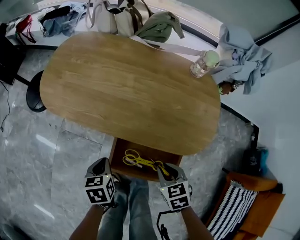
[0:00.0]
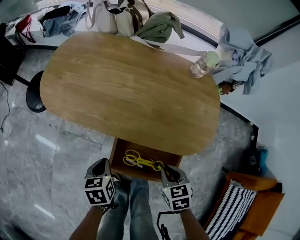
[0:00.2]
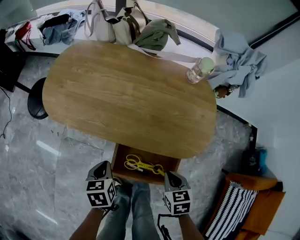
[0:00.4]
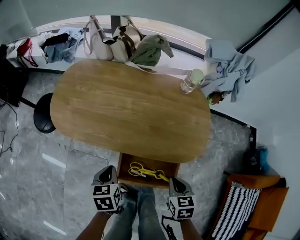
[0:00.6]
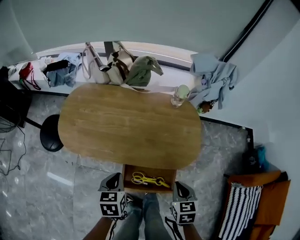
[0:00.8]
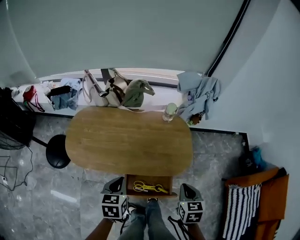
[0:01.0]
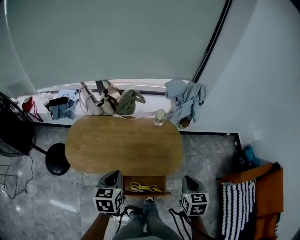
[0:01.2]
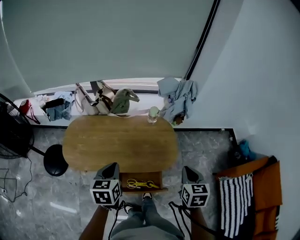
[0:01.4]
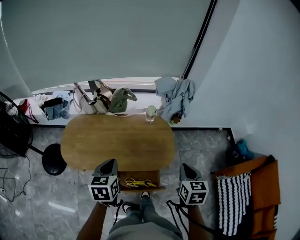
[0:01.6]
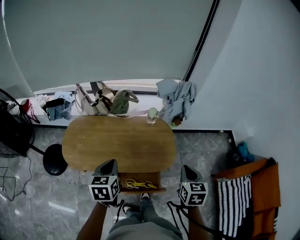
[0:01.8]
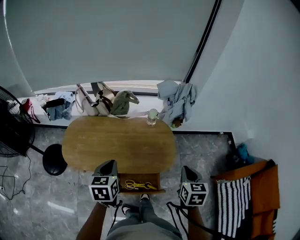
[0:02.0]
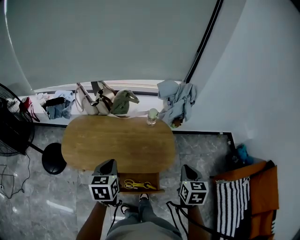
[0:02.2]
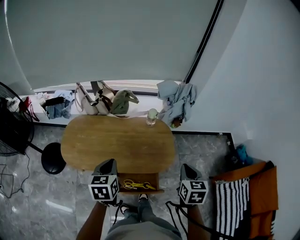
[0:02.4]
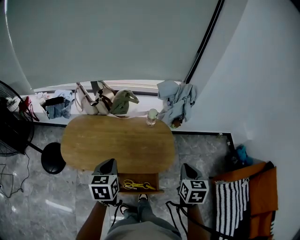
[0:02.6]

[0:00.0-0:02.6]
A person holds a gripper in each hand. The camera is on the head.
0.0 to 1.2 s: Both grippers travel together upward, roughly 35 cm. The left gripper turns by some 30 degrees. The right gripper rotates some 40 degrees, and closes its fingers.
1.2 to 2.6 s: The right gripper moves upward, some 5 cm.

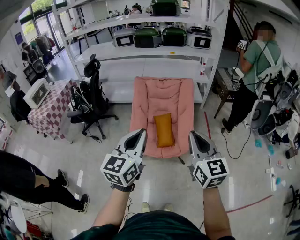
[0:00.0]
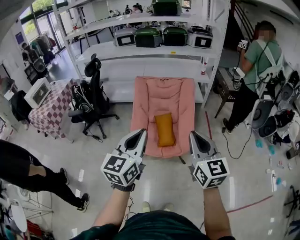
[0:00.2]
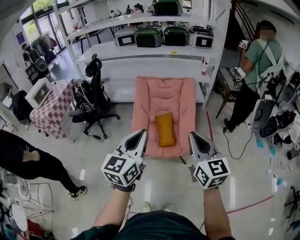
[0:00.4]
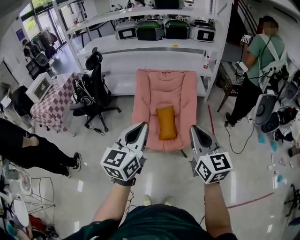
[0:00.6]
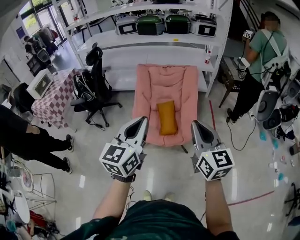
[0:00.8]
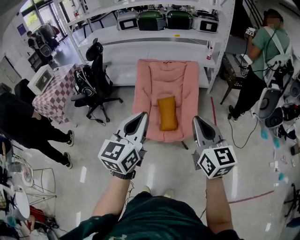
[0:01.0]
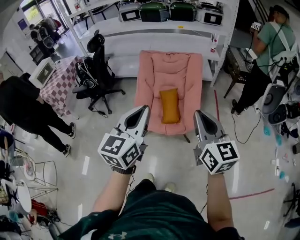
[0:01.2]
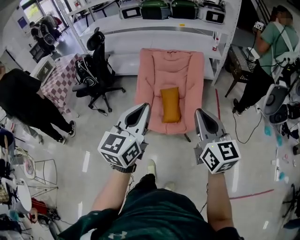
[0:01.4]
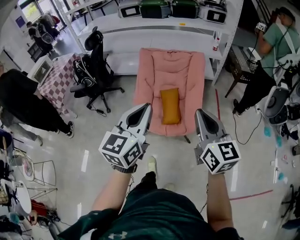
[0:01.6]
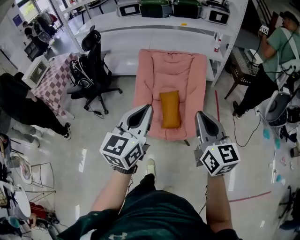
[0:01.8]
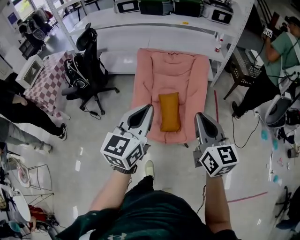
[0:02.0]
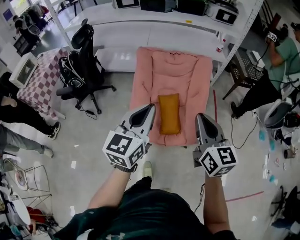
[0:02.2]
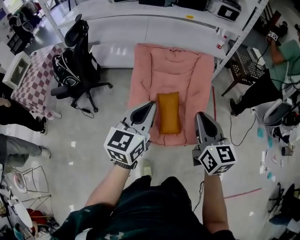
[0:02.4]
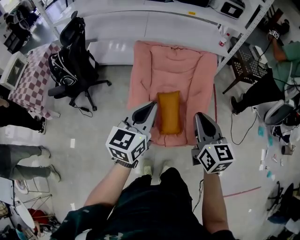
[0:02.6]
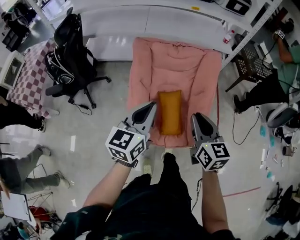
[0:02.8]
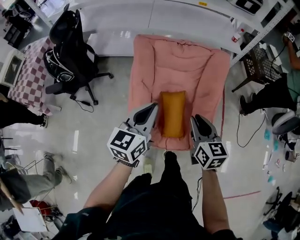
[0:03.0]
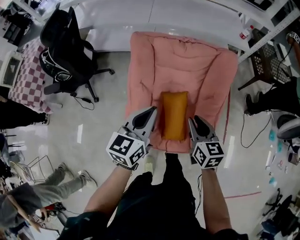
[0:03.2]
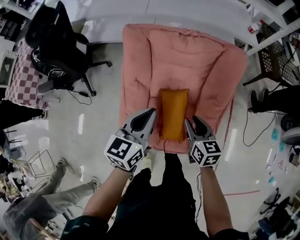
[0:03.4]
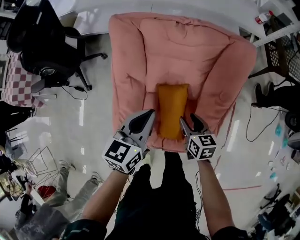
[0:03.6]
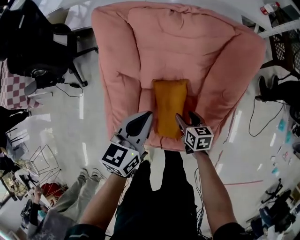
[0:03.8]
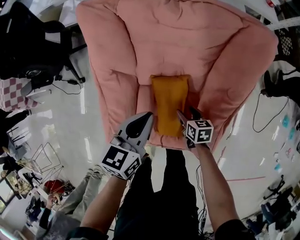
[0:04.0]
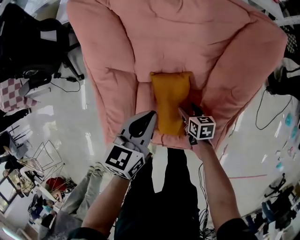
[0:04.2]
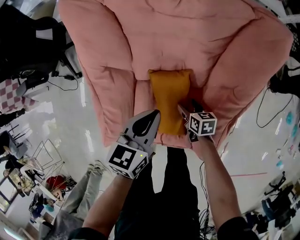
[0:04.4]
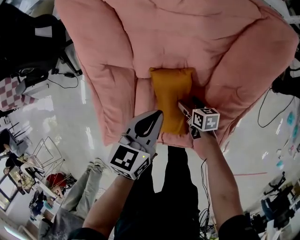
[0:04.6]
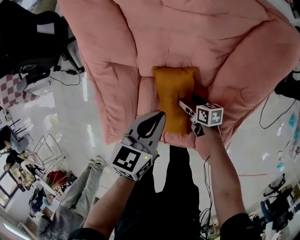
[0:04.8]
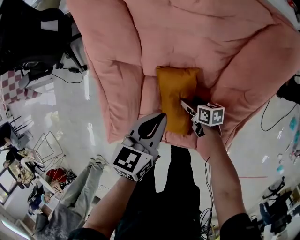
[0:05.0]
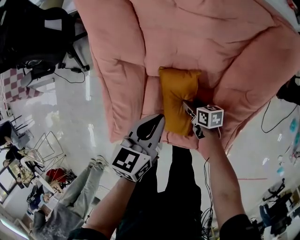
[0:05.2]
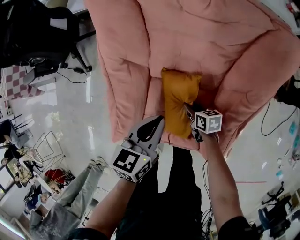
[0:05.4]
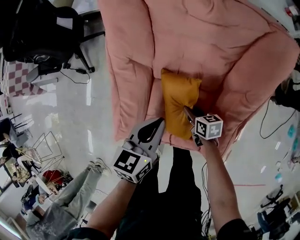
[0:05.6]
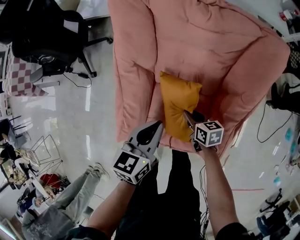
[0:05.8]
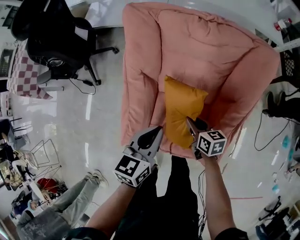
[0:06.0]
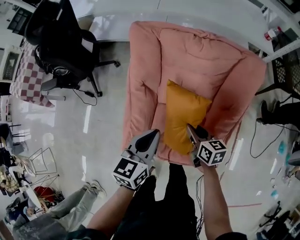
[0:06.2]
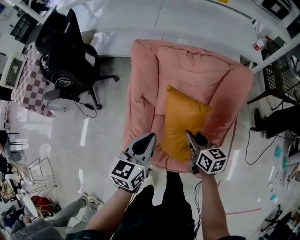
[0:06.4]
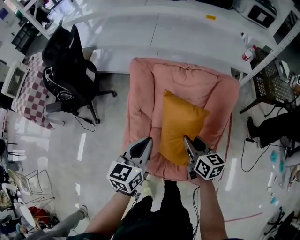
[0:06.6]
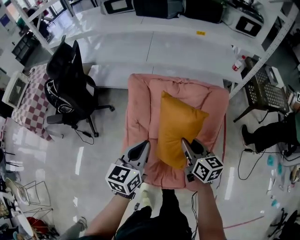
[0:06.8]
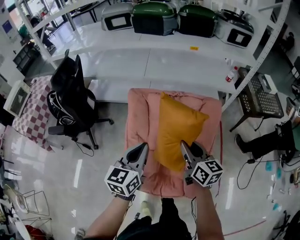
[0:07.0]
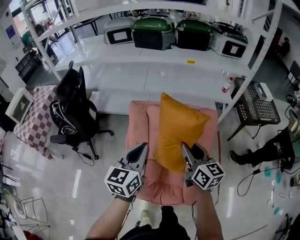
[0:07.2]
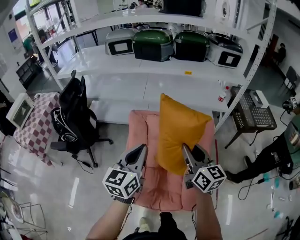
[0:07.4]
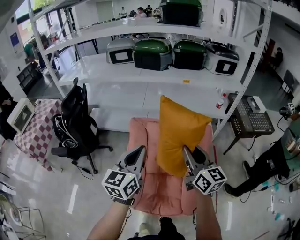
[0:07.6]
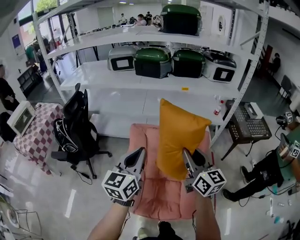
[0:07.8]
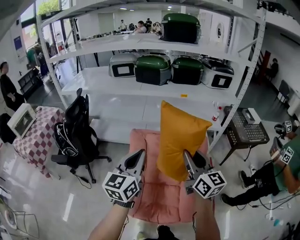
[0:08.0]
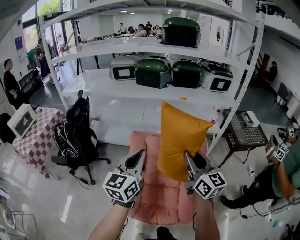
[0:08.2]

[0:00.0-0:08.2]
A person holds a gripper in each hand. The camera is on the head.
0.0 to 1.6 s: The left gripper moves roughly 5 cm. The right gripper travels forward by approximately 5 cm.
1.6 to 3.2 s: The two grippers travel together, forward, about 40 cm. Both grippers travel together downward, roughly 25 cm. The right gripper changes its angle by about 30 degrees.
3.2 to 5.0 s: The left gripper travels downward by roughly 30 cm, and turns by about 30 degrees, while the right gripper is displaced downward by some 50 cm, turns by some 50 degrees, and opens up.
5.0 to 6.6 s: The right gripper goes roughly 40 cm upward, turns by approximately 40 degrees, and closes. The left gripper shifts some 25 cm upward, and rotates roughly 20 degrees.
6.6 to 8.2 s: Both grippers travel together upward, approximately 30 cm. The right gripper tilts its fingers some 30 degrees upward. Meanwhile the left gripper rotates some 30 degrees.

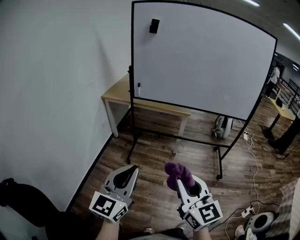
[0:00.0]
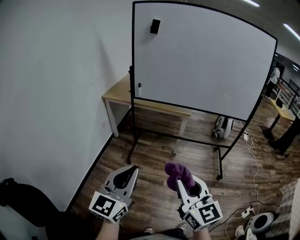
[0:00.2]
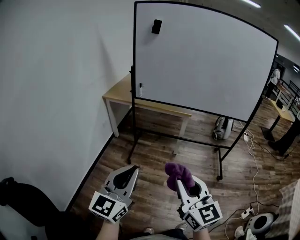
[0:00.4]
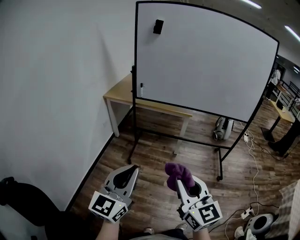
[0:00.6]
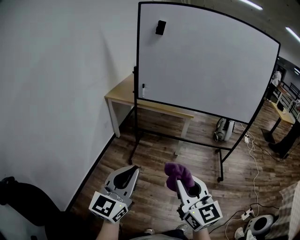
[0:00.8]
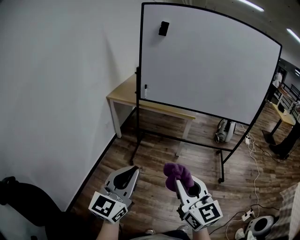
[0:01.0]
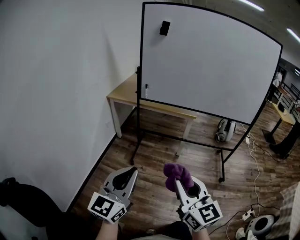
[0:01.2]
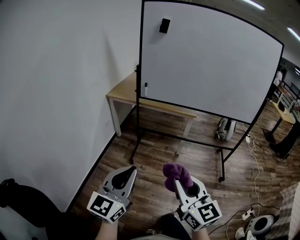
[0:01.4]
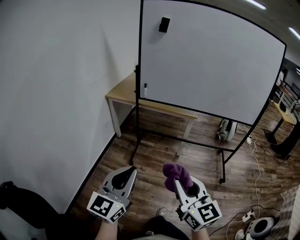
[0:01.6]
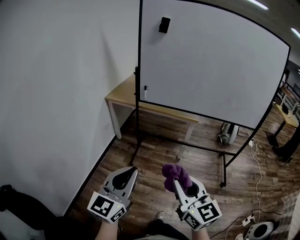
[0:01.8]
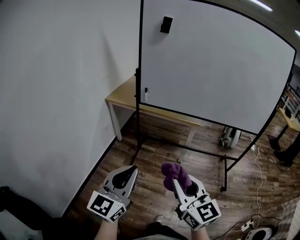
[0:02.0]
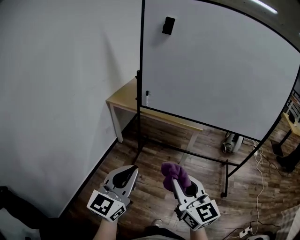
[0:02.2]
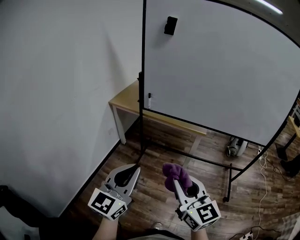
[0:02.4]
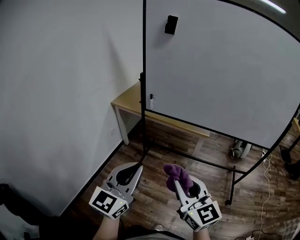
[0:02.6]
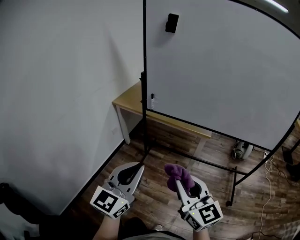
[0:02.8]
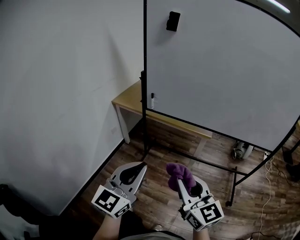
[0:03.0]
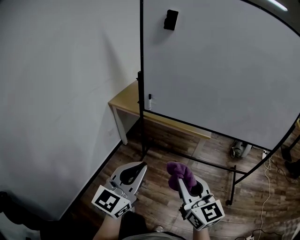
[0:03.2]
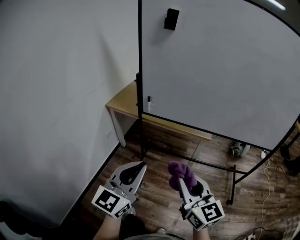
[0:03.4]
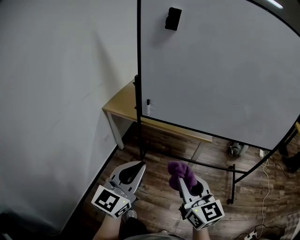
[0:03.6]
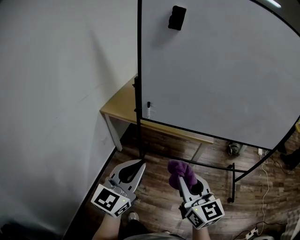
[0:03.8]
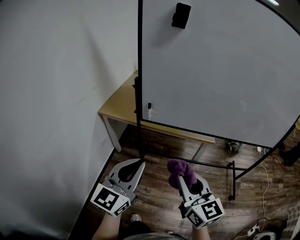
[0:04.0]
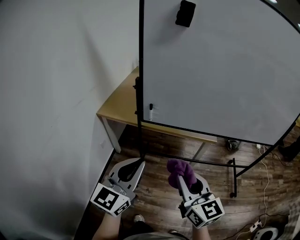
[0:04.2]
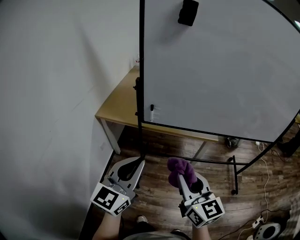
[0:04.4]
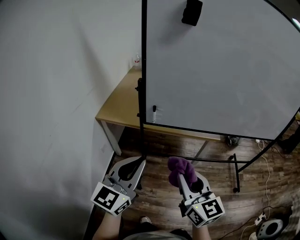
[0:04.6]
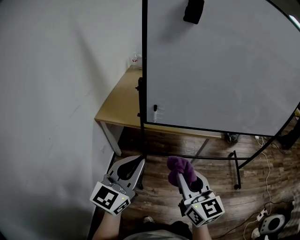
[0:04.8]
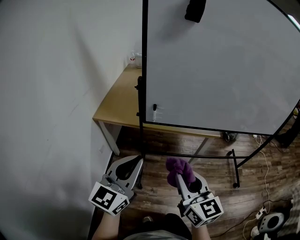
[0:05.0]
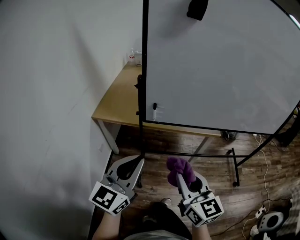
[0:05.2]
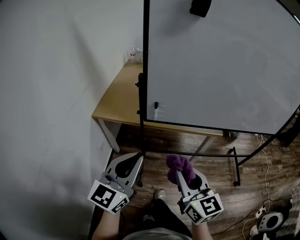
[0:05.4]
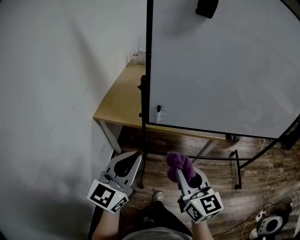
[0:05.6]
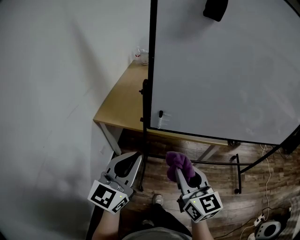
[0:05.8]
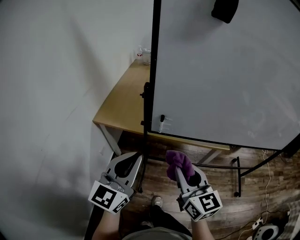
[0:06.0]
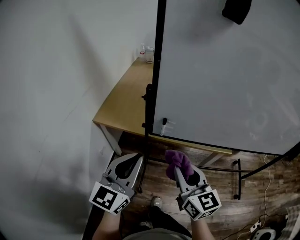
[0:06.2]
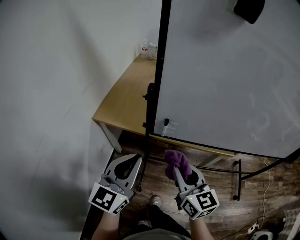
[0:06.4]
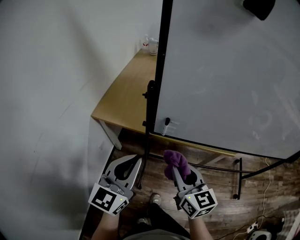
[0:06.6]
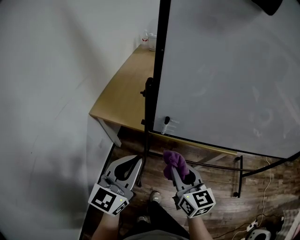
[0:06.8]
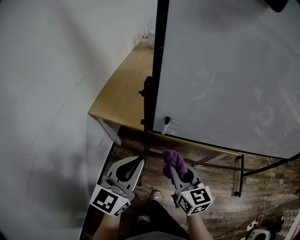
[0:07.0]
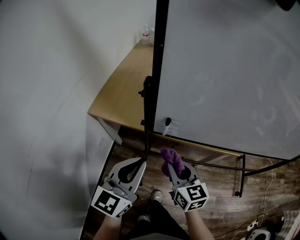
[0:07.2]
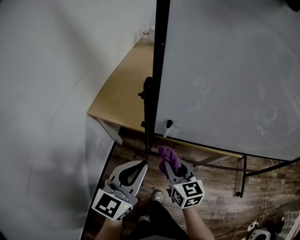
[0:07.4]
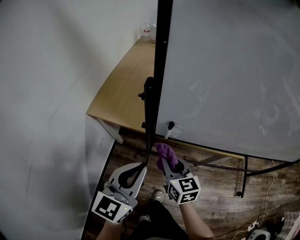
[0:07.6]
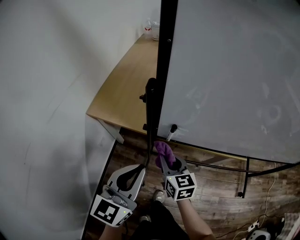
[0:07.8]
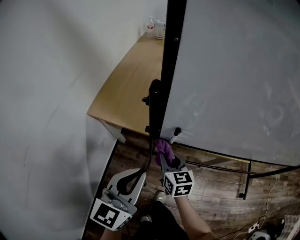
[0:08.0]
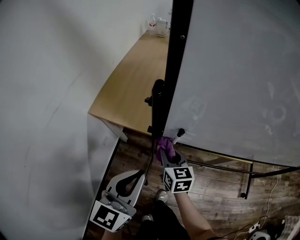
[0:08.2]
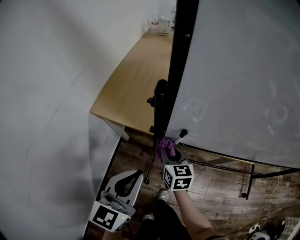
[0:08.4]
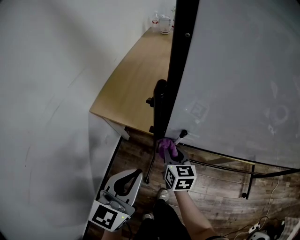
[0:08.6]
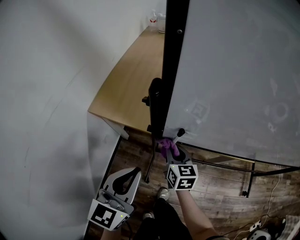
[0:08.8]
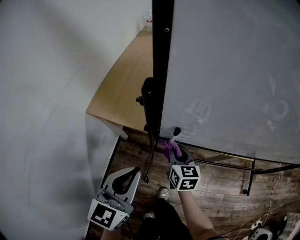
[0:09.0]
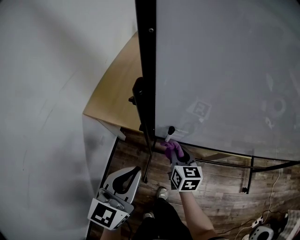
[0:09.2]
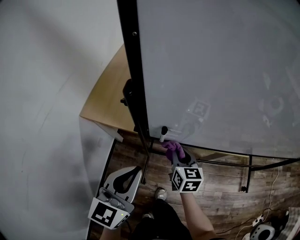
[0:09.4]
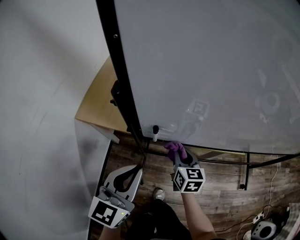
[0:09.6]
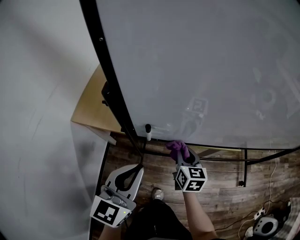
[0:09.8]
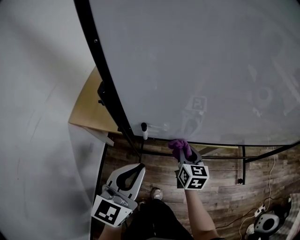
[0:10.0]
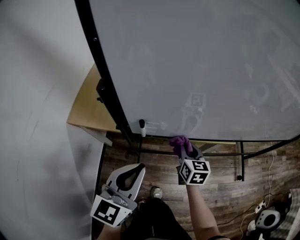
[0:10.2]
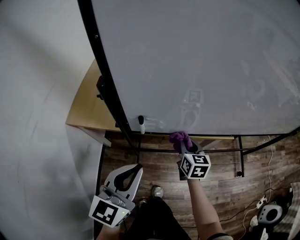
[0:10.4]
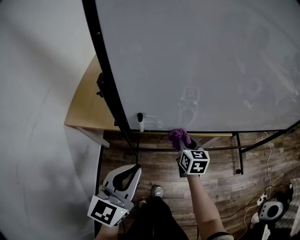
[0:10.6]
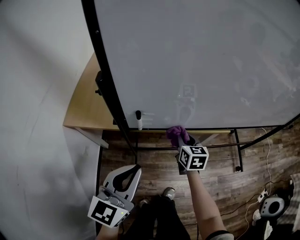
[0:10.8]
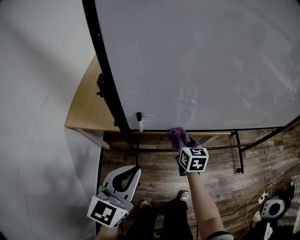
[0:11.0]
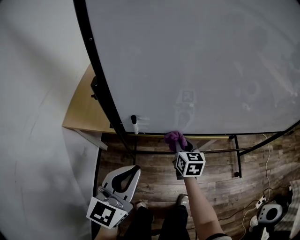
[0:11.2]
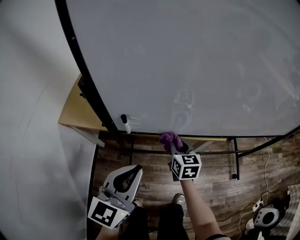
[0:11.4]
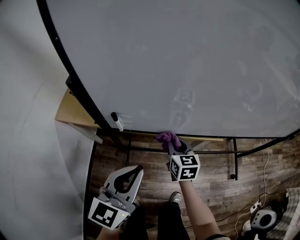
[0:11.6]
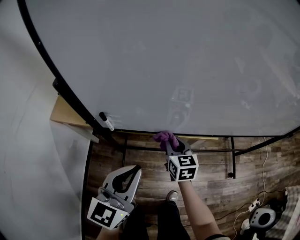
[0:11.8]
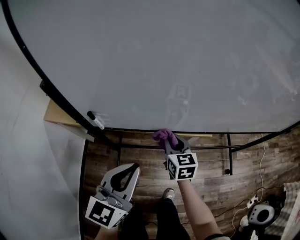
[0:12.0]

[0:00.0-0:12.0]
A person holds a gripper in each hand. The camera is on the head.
0.0 to 1.6 s: The right gripper moves roughly 5 cm. Meanwhile the left gripper changes place by about 5 cm.
1.6 to 3.0 s: The right gripper heads forward, covering approximately 20 cm; the left gripper travels forward and to the right by some 20 cm.
3.0 to 4.4 s: Both grippers move forward and to the left, about 25 cm.
4.4 to 6.0 s: Both grippers travel together forward and to the left, about 15 cm.
6.0 to 7.6 s: The right gripper travels downward and forward by some 25 cm. The left gripper travels downward and forward by roughly 15 cm.
7.6 to 9.0 s: The right gripper goes roughly 10 cm forward and downward.
9.0 to 10.4 s: The right gripper is displaced to the right by approximately 15 cm. Meanwhile the left gripper heads to the right, covering roughly 10 cm.
10.4 to 12.0 s: The left gripper heads to the right, covering about 15 cm; the right gripper heads to the right, covering roughly 10 cm.

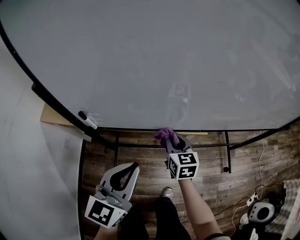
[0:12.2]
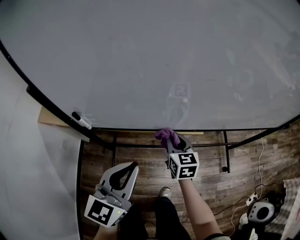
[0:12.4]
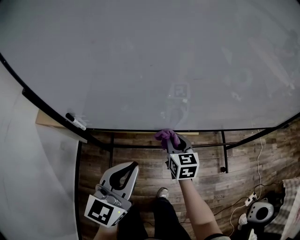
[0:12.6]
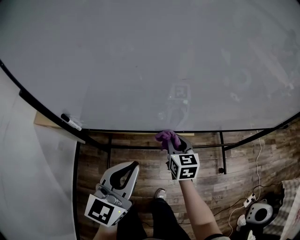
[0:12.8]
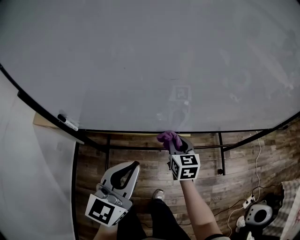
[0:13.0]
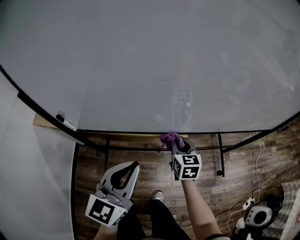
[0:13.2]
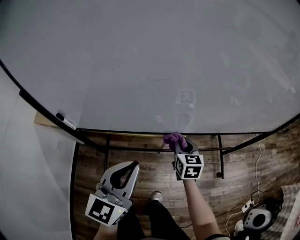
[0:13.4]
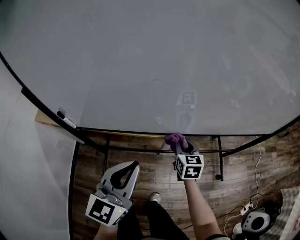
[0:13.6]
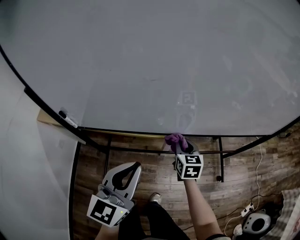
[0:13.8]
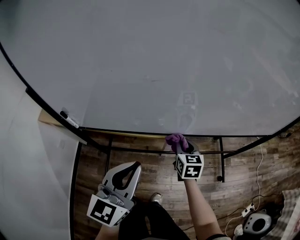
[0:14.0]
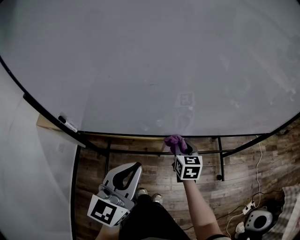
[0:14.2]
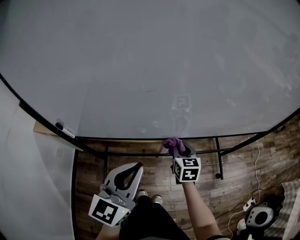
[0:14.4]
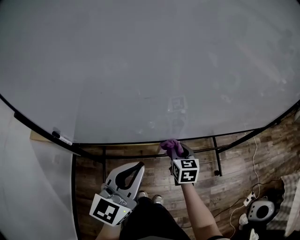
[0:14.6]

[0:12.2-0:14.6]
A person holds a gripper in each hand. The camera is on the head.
12.2 to 13.4 s: The two grippers go some 15 cm to the right.
13.4 to 14.6 s: The grippers move only a little.
